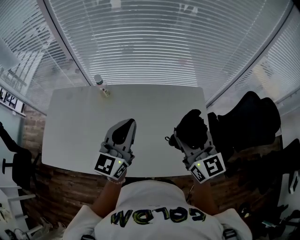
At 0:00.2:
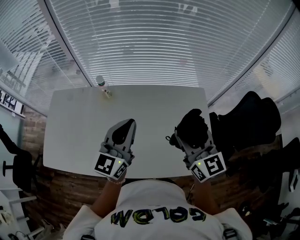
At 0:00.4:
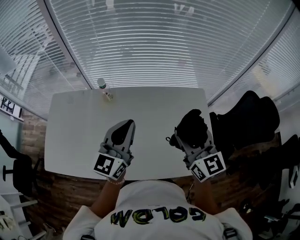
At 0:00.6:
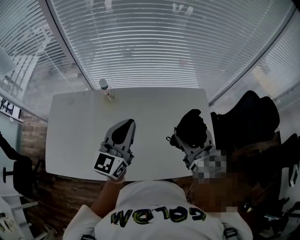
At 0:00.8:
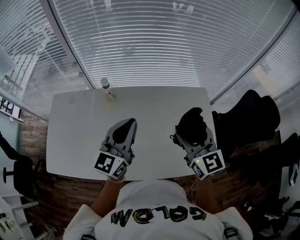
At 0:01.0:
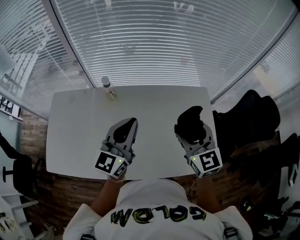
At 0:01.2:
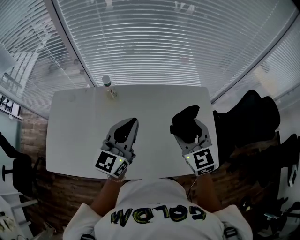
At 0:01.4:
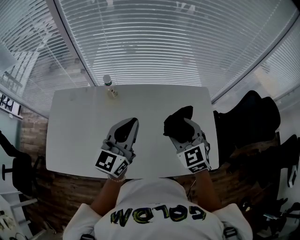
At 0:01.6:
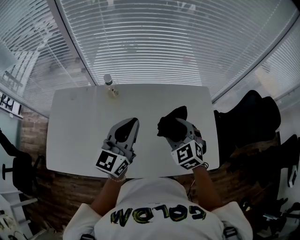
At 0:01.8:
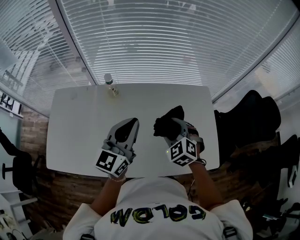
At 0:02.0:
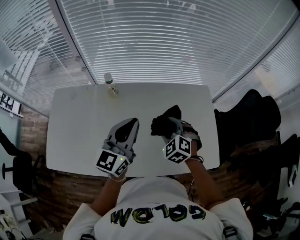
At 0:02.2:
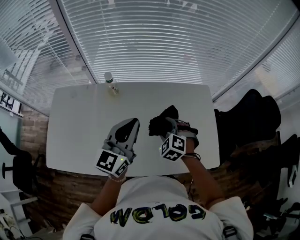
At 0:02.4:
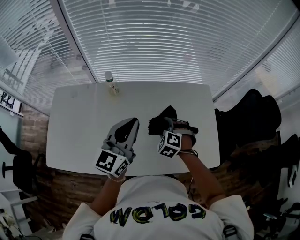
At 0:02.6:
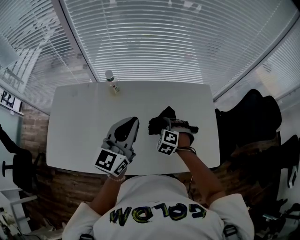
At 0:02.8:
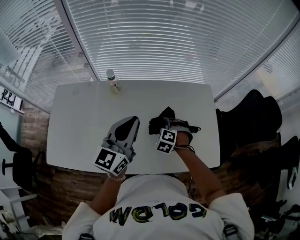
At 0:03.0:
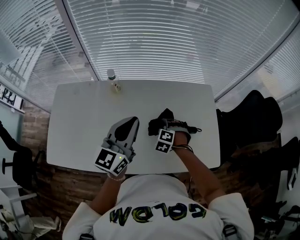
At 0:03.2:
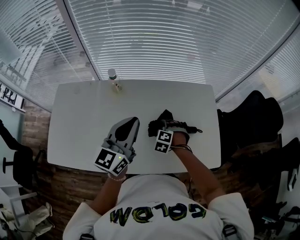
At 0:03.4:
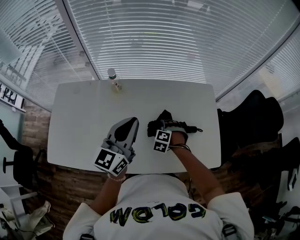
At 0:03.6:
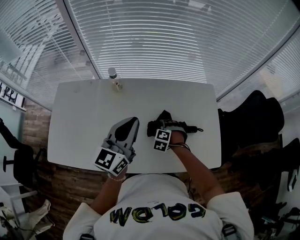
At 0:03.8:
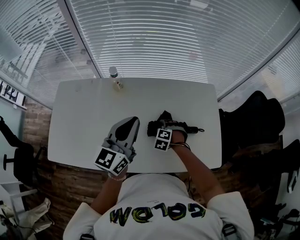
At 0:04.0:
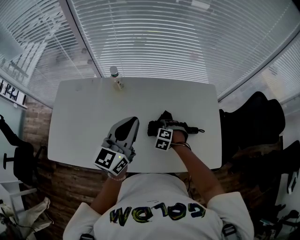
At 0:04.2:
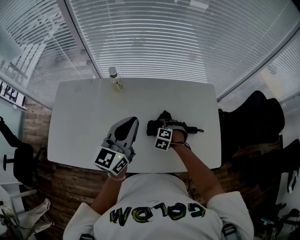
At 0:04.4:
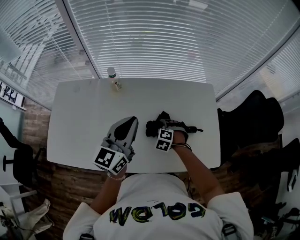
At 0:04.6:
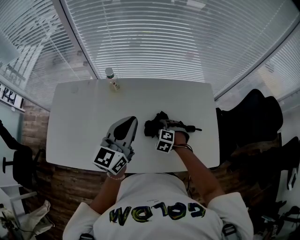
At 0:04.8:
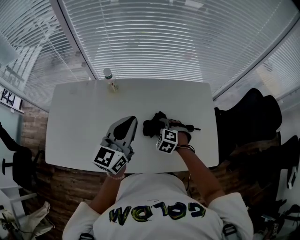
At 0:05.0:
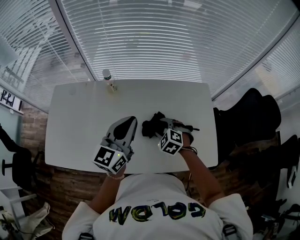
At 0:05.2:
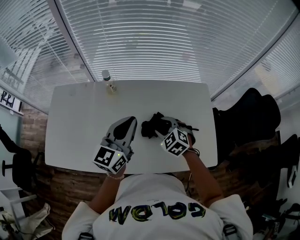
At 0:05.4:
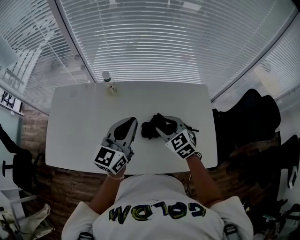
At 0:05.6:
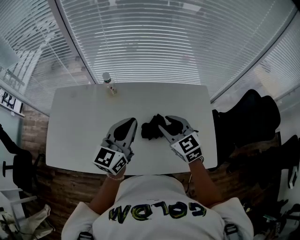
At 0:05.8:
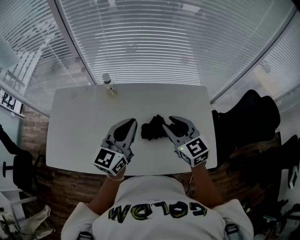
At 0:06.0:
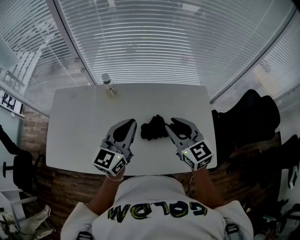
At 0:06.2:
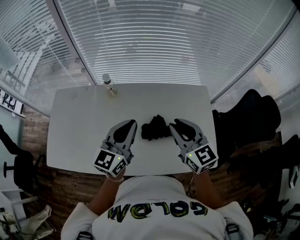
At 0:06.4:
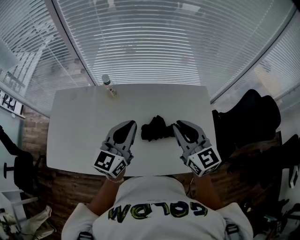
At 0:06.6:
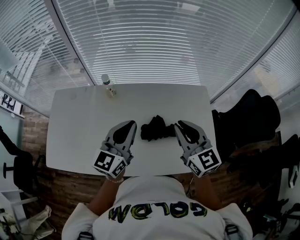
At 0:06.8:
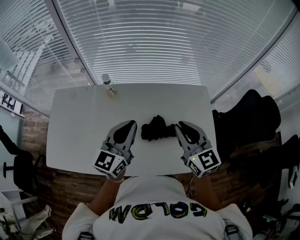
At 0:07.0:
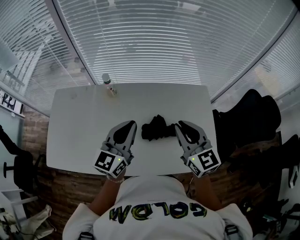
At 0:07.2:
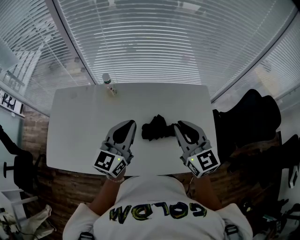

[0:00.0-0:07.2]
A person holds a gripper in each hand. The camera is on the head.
0:00.0 to 0:01.4: The left gripper shifts some 5 cm to the left, while the right gripper shifts approximately 10 cm to the left and downward, and changes its angle by some 40 degrees.
0:01.4 to 0:02.8: The right gripper moves downward, about 20 cm, and points its fingers approximately 30 degrees further downward.
0:02.8 to 0:04.4: The right gripper goes some 5 cm downward.
0:04.4 to 0:05.8: The right gripper shifts about 25 cm upward, tilts its fingers approximately 50 degrees upward, and closes its fingers.
0:05.8 to 0:07.2: The right gripper moves some 5 cm.

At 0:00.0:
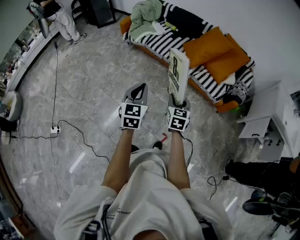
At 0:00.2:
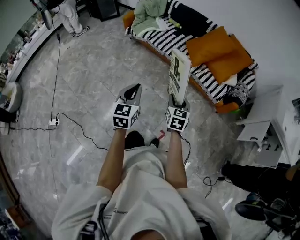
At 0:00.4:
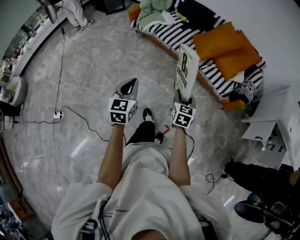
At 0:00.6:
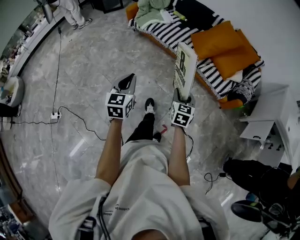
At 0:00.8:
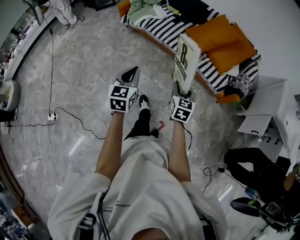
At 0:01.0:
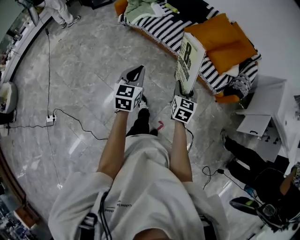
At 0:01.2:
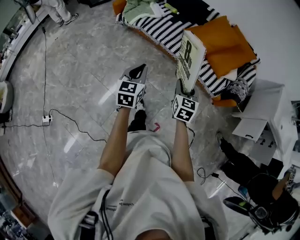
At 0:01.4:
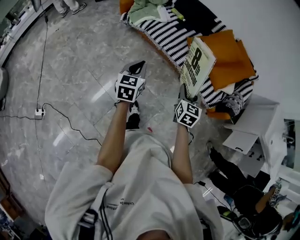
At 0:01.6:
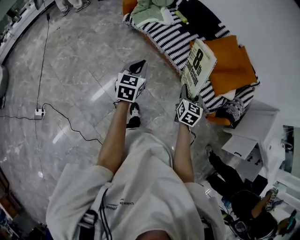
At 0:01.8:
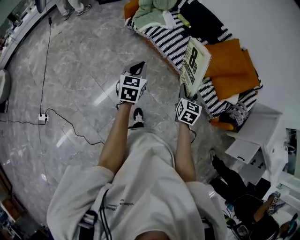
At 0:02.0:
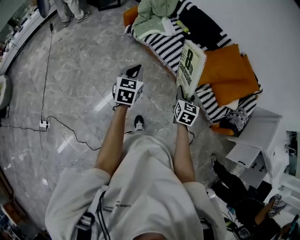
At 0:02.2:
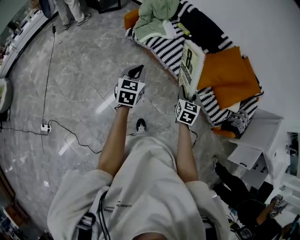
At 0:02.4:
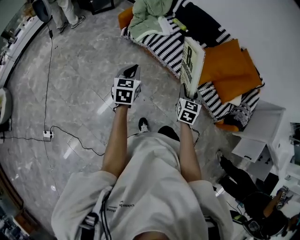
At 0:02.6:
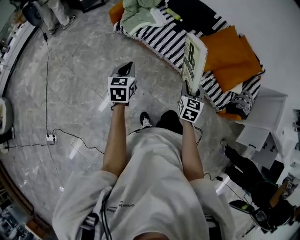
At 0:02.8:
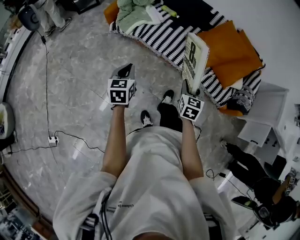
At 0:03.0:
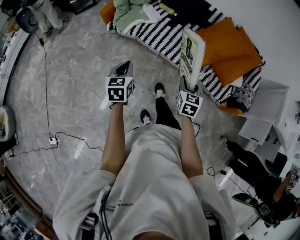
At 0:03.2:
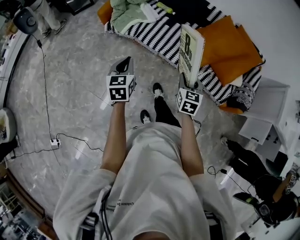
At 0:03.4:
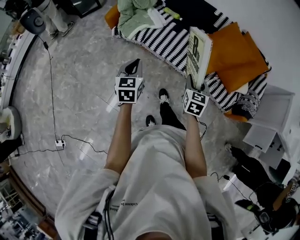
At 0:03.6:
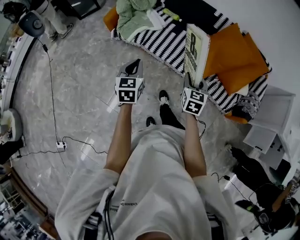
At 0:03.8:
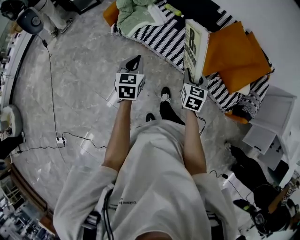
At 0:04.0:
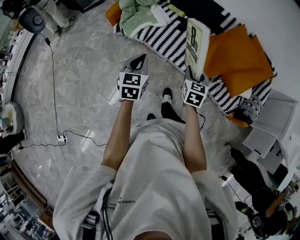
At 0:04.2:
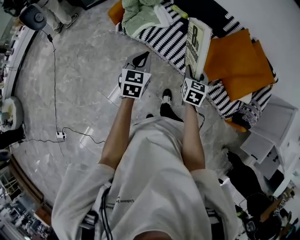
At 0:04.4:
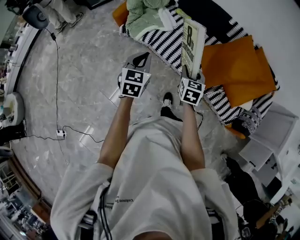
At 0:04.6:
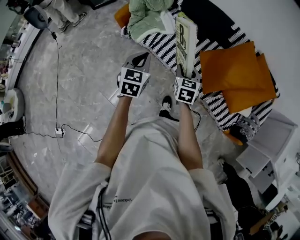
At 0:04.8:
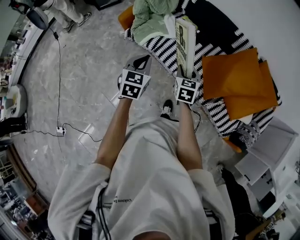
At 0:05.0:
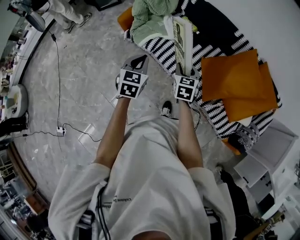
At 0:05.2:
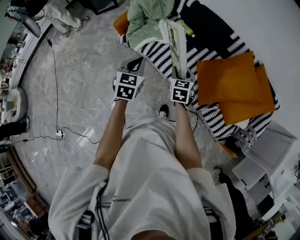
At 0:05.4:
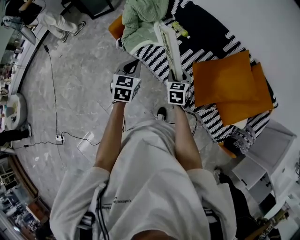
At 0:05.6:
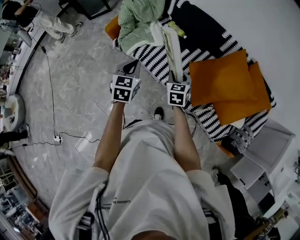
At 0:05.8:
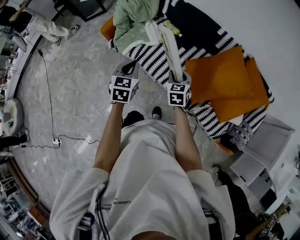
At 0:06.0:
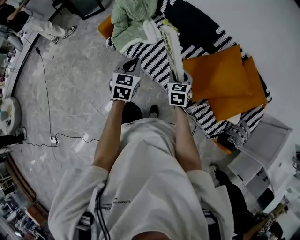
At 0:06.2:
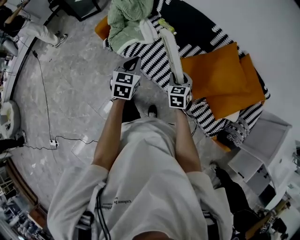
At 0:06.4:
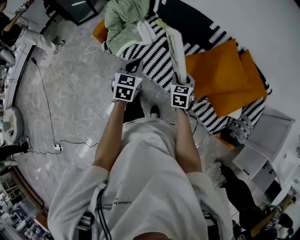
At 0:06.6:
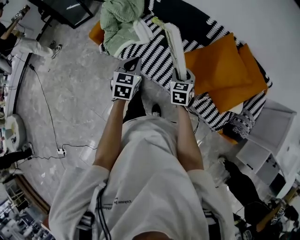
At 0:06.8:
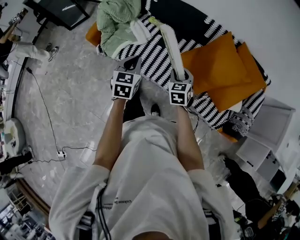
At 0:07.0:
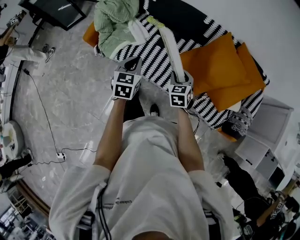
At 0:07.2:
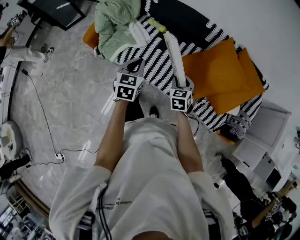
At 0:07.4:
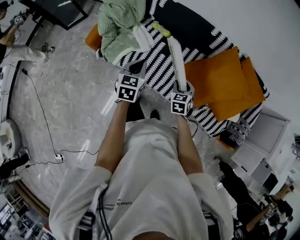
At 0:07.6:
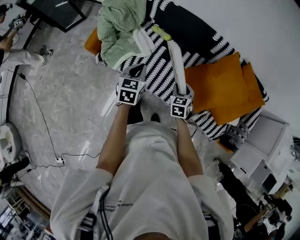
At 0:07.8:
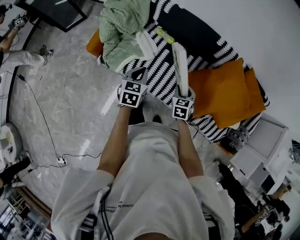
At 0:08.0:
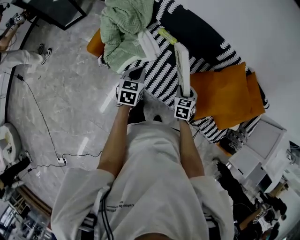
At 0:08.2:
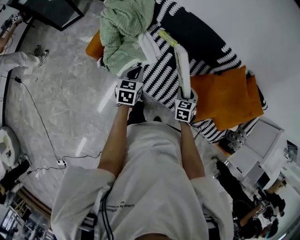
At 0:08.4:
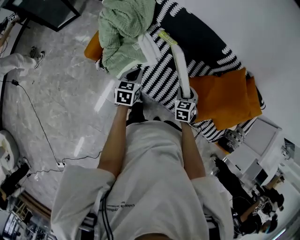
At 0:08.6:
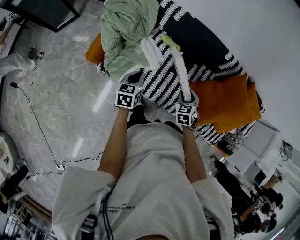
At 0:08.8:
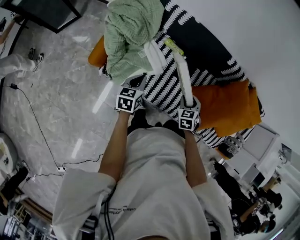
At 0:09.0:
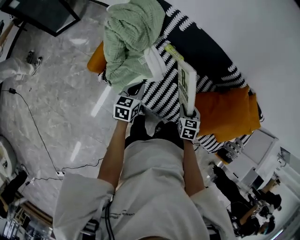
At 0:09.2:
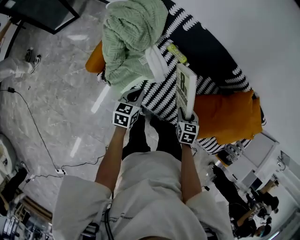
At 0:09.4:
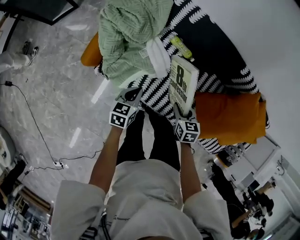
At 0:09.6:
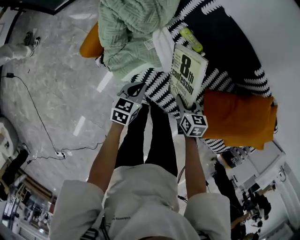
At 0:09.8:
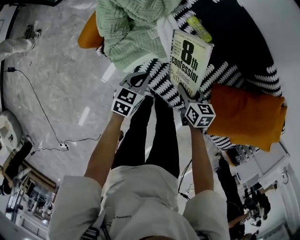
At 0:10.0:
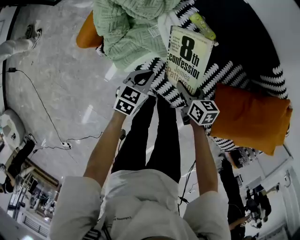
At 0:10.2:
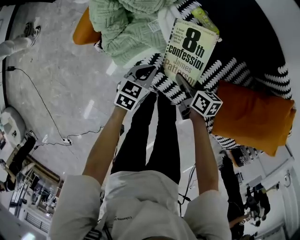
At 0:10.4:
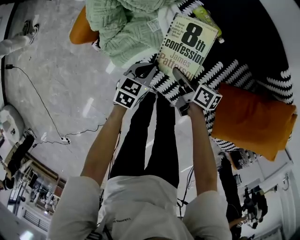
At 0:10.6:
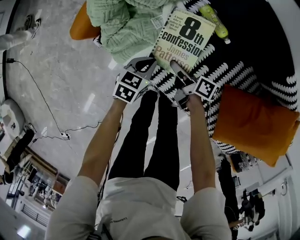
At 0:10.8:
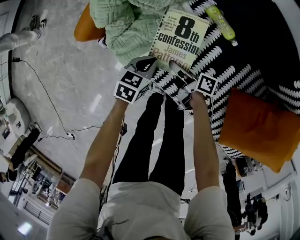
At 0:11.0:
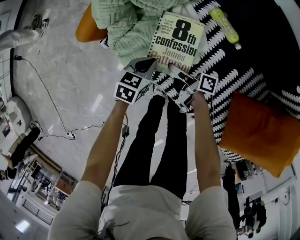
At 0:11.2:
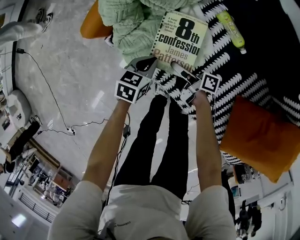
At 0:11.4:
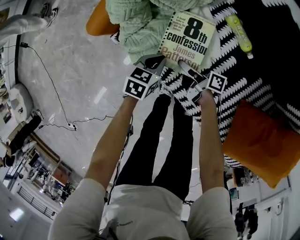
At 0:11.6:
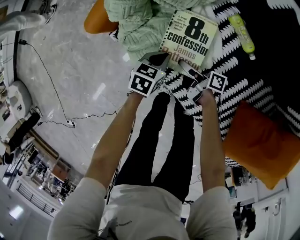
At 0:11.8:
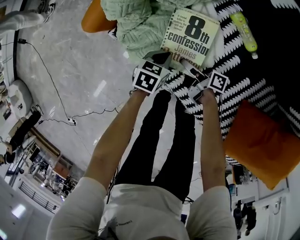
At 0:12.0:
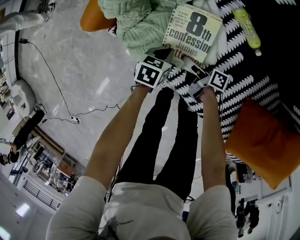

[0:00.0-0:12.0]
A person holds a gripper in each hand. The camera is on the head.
0:00.0 to 0:01.6: Both grippers move forward, some 25 cm.
0:01.6 to 0:03.0: The left gripper is displaced forward and to the left by approximately 15 cm, while the right gripper is displaced forward by some 10 cm.
0:03.0 to 0:04.4: The grippers both shift forward by about 20 cm.
0:04.4 to 0:06.0: Both grippers move forward and to the right, about 15 cm.
0:06.0 to 0:07.6: The right gripper goes about 10 cm forward and downward. Meanwhile the left gripper goes approximately 15 cm forward.
0:07.6 to 0:09.0: The left gripper goes roughly 25 cm to the left, downward and forward. The right gripper goes roughly 15 cm to the left and forward.
0:09.0 to 0:10.4: The left gripper travels downward by roughly 25 cm, while the right gripper goes approximately 25 cm downward and to the left, and changes its angle by about 70 degrees.
0:10.4 to 0:12.0: The right gripper heads downward and to the left, covering some 15 cm, and rotates roughly 30 degrees; the left gripper shifts some 10 cm downward.

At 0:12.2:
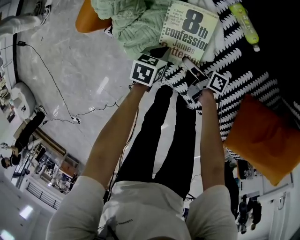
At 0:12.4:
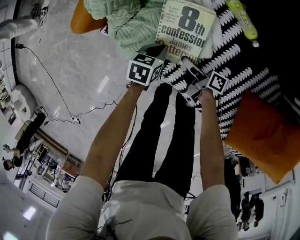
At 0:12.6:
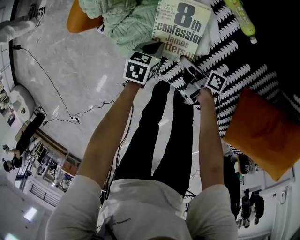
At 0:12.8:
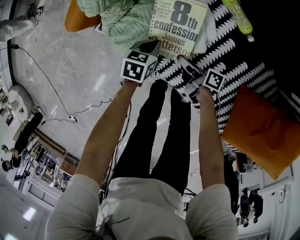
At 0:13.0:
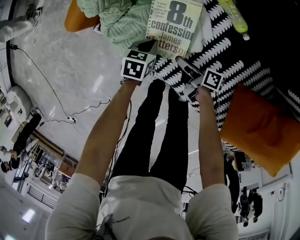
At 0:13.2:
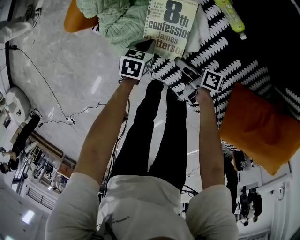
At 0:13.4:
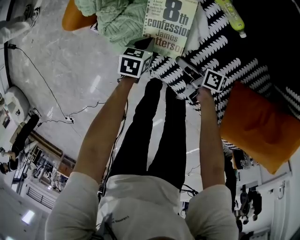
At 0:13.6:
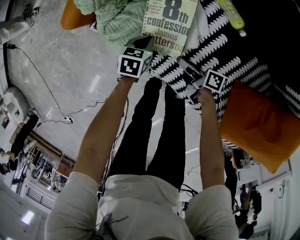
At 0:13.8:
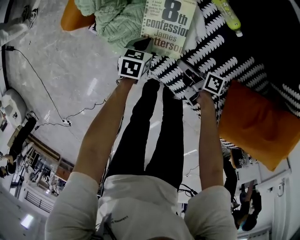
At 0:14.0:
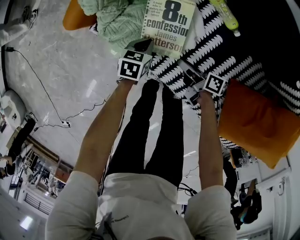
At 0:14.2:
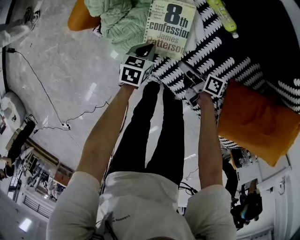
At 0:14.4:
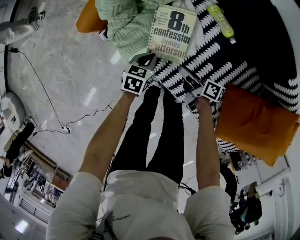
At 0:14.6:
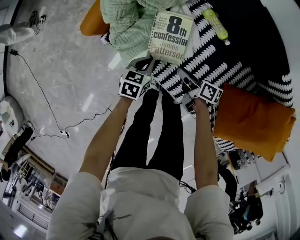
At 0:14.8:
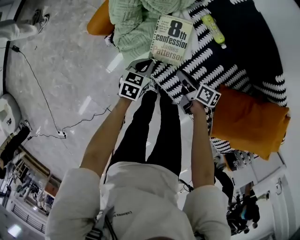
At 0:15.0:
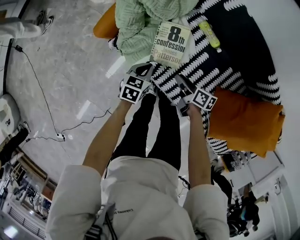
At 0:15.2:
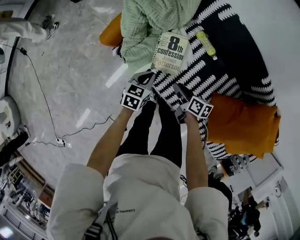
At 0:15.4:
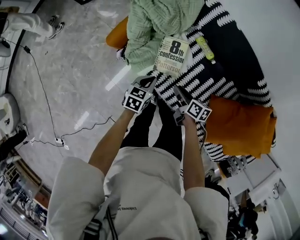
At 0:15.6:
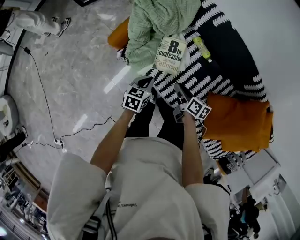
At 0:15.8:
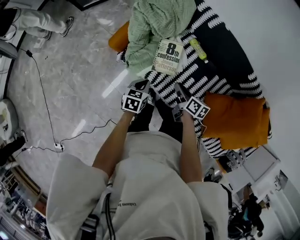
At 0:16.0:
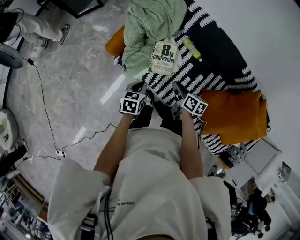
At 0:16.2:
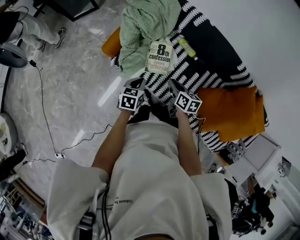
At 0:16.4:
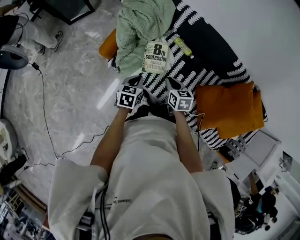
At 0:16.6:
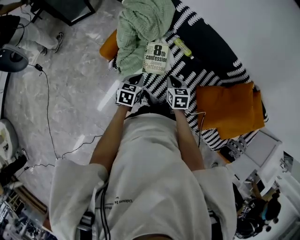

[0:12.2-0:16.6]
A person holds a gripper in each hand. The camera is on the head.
0:12.2 to 0:13.6: The right gripper is displaced to the right by approximately 5 cm.
0:13.6 to 0:15.2: Both grippers travel together upward, roughly 20 cm. The right gripper turns by about 30 degrees.
0:15.2 to 0:16.6: The grippers both shift upward by about 15 cm. The right gripper turns by some 50 degrees, and closes up.
